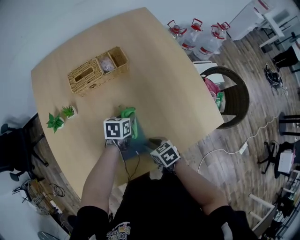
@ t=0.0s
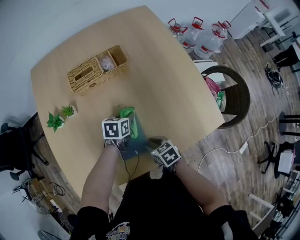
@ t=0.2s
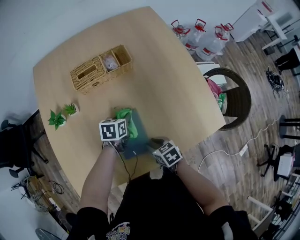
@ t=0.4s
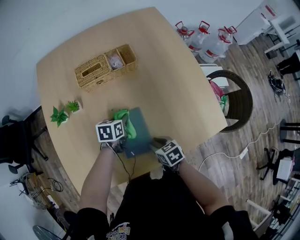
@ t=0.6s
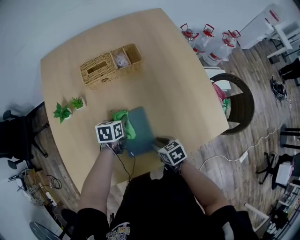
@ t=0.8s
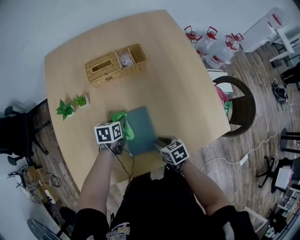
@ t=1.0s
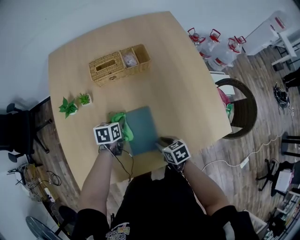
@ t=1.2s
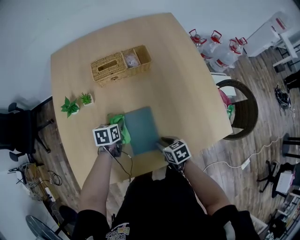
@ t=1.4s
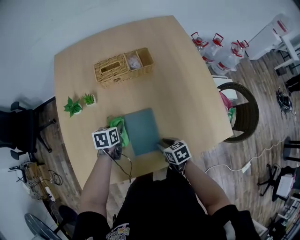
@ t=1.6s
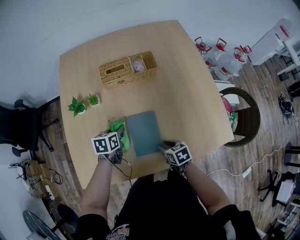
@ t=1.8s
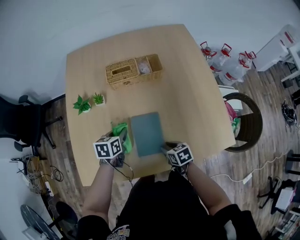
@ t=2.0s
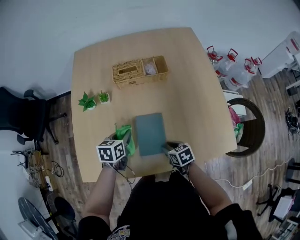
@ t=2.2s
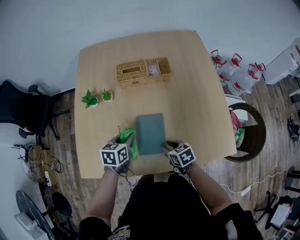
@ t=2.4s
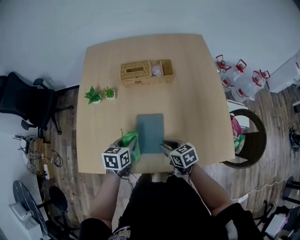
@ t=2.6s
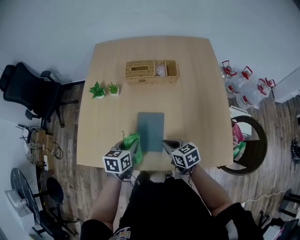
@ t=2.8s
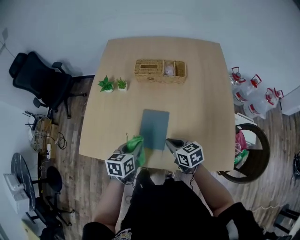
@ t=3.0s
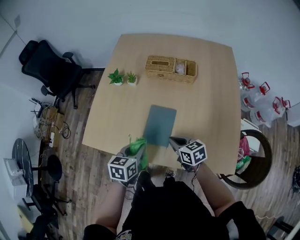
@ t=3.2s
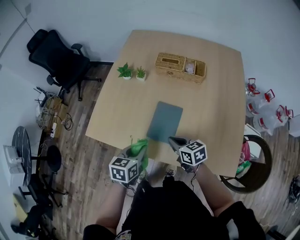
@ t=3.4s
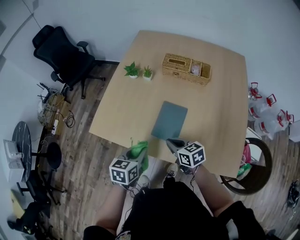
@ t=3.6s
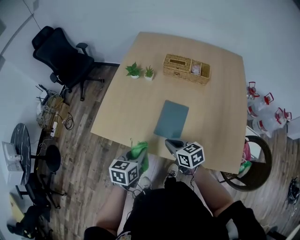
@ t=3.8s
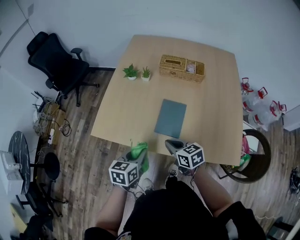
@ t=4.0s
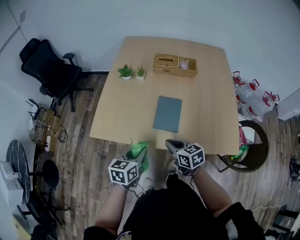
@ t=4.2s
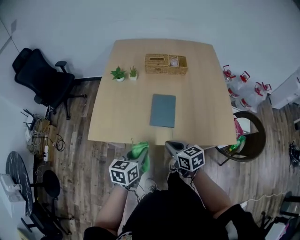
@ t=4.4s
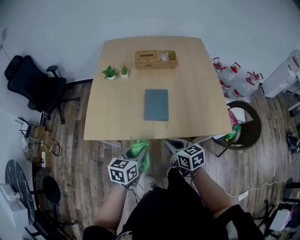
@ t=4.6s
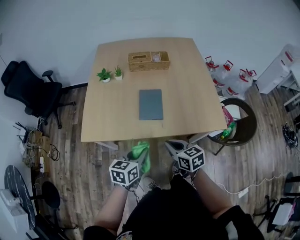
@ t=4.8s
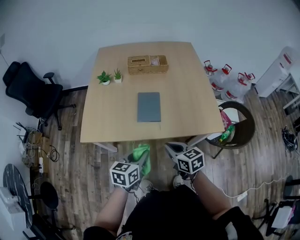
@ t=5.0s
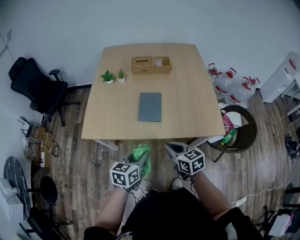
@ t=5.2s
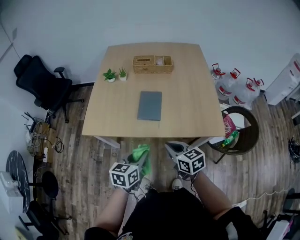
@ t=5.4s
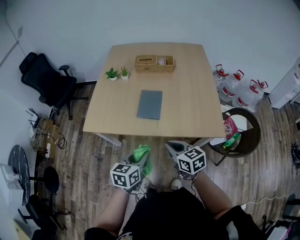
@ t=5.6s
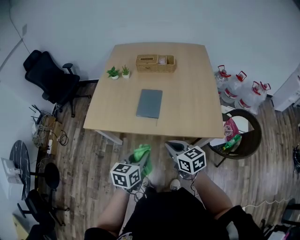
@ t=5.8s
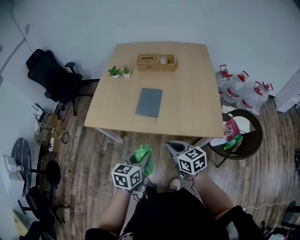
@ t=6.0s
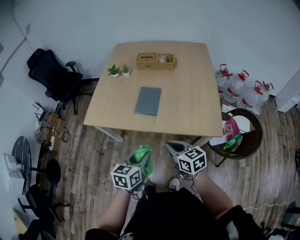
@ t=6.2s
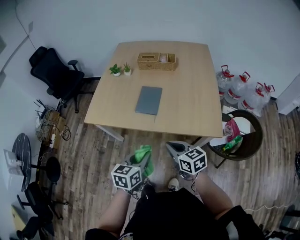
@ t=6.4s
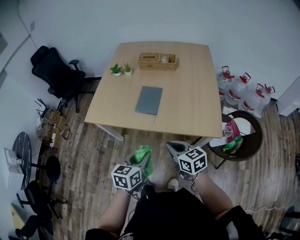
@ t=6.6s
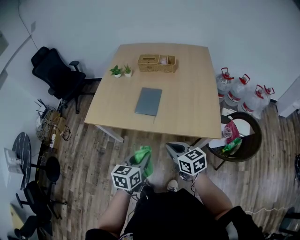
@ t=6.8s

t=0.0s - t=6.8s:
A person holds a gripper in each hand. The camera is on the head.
t=0.0s - t=1.4s: The left gripper is displaced to the left by approximately 15 cm.
t=1.4s - t=2.8s: The right gripper travels upward by roughly 10 cm, rotates approximately 30 degrees, and closes its fingers; the left gripper shifts roughly 20 cm backward and upward.
t=2.8s - t=4.0s: The right gripper moves to the left and backward, some 15 cm; the left gripper moves backward and to the left, some 20 cm.
t=4.0s - t=5.4s: Both grippers travel together backward and to the right, roughly 15 cm.
t=5.4s - t=6.8s: The two grippers go about 10 cm to the right and backward.

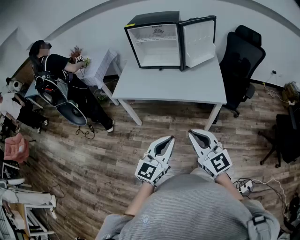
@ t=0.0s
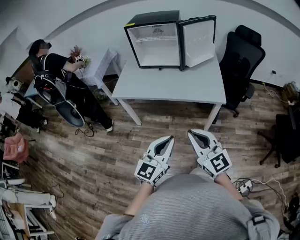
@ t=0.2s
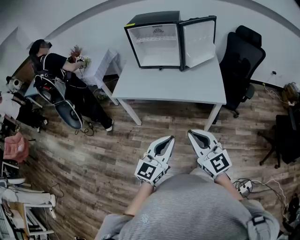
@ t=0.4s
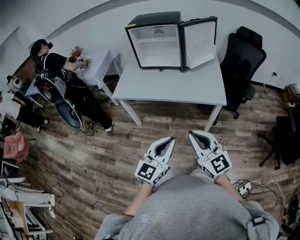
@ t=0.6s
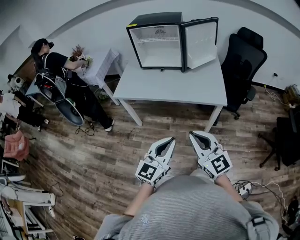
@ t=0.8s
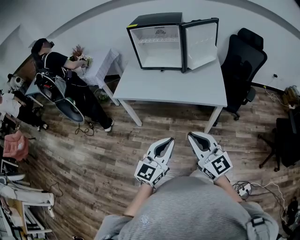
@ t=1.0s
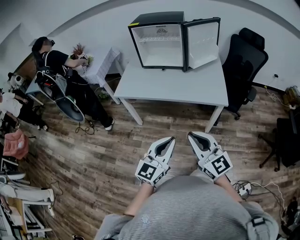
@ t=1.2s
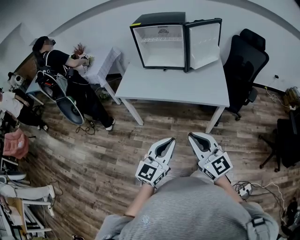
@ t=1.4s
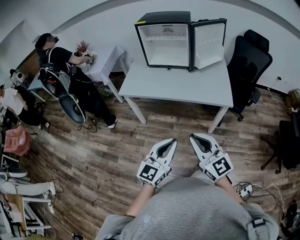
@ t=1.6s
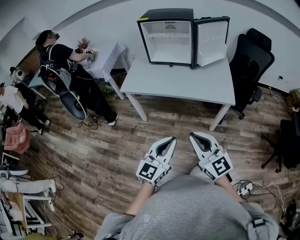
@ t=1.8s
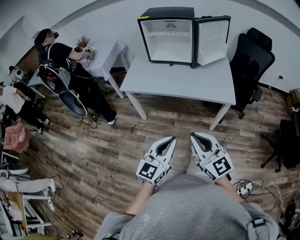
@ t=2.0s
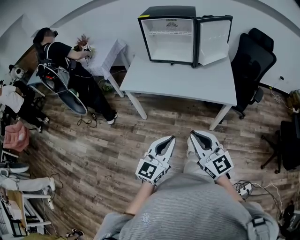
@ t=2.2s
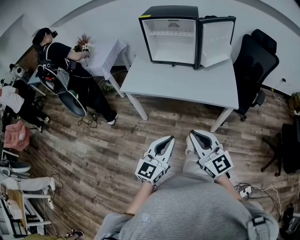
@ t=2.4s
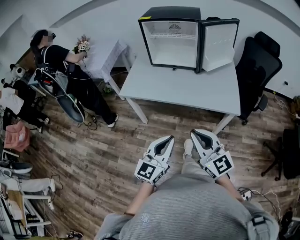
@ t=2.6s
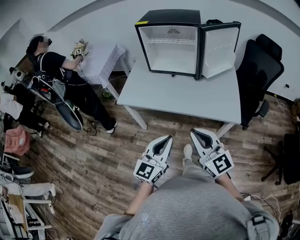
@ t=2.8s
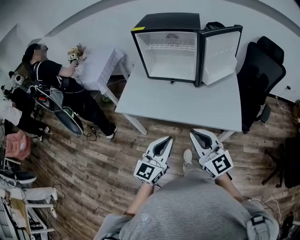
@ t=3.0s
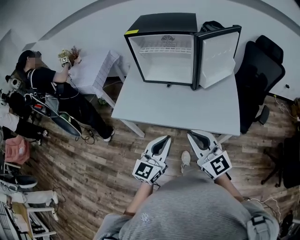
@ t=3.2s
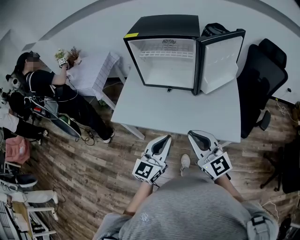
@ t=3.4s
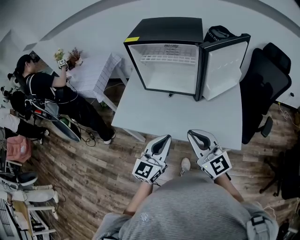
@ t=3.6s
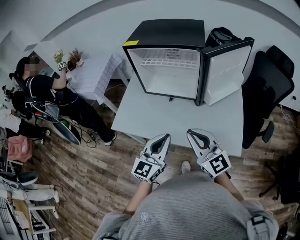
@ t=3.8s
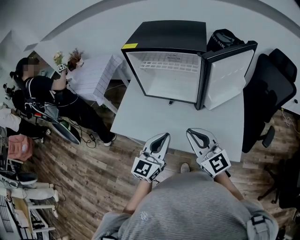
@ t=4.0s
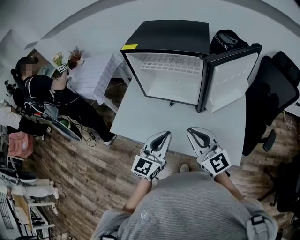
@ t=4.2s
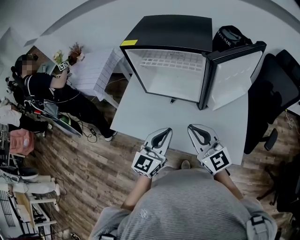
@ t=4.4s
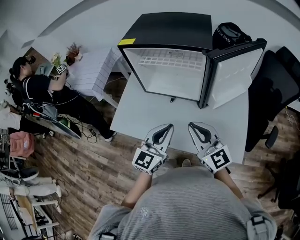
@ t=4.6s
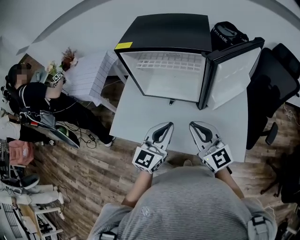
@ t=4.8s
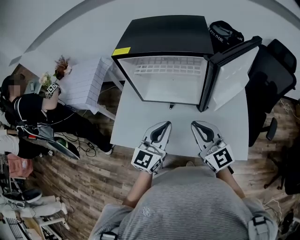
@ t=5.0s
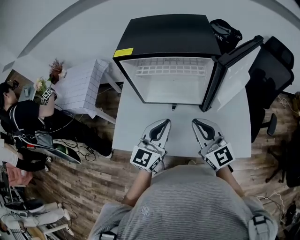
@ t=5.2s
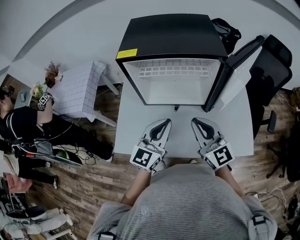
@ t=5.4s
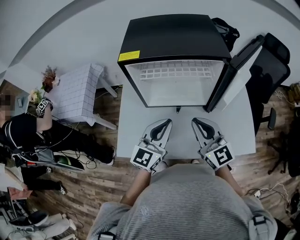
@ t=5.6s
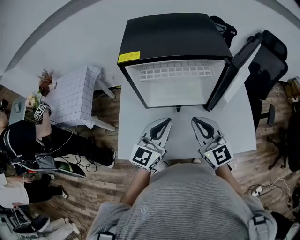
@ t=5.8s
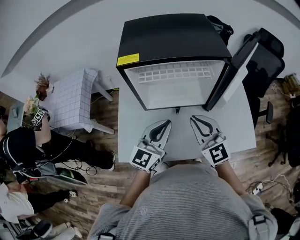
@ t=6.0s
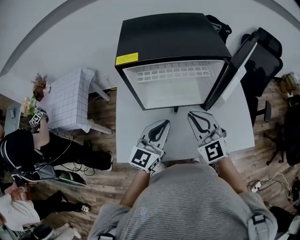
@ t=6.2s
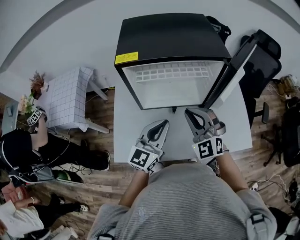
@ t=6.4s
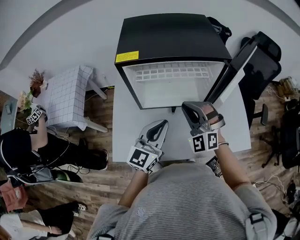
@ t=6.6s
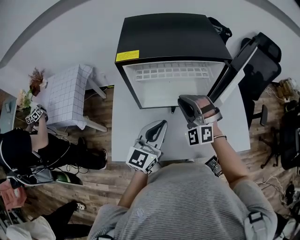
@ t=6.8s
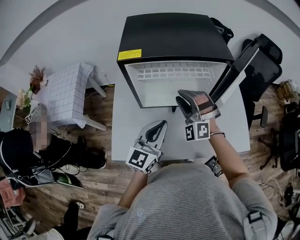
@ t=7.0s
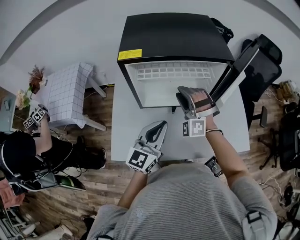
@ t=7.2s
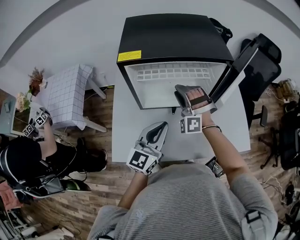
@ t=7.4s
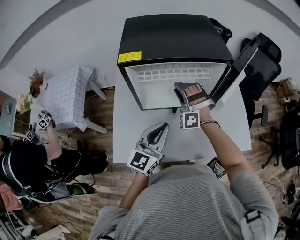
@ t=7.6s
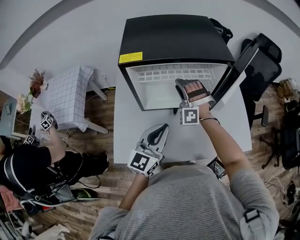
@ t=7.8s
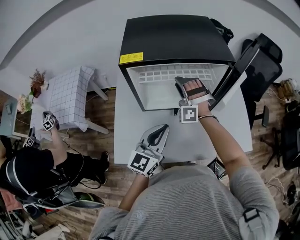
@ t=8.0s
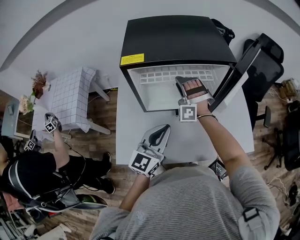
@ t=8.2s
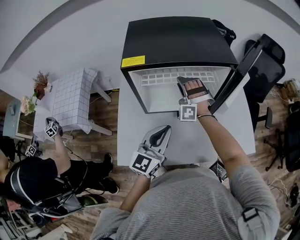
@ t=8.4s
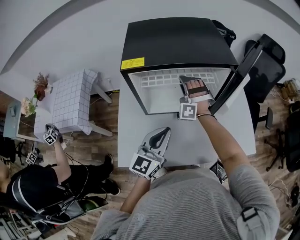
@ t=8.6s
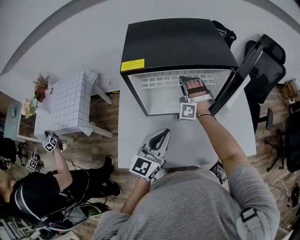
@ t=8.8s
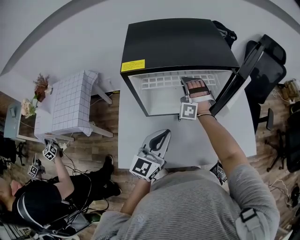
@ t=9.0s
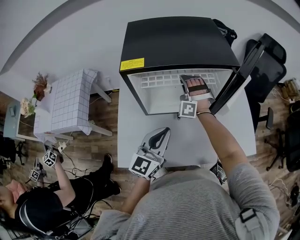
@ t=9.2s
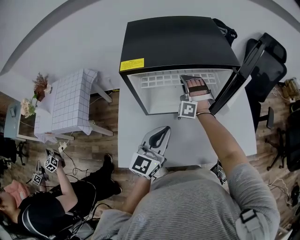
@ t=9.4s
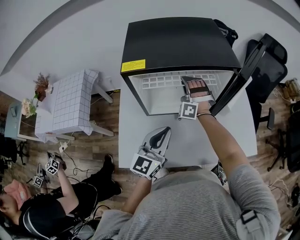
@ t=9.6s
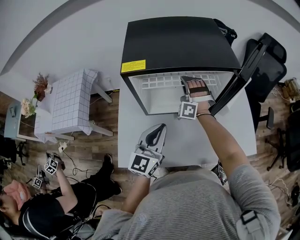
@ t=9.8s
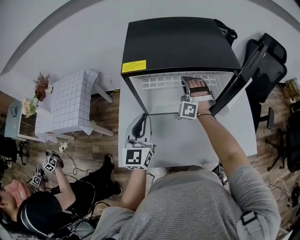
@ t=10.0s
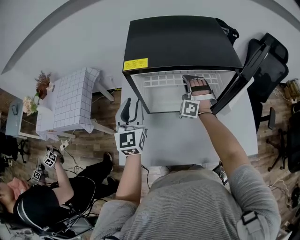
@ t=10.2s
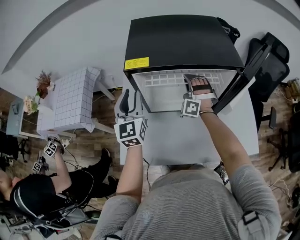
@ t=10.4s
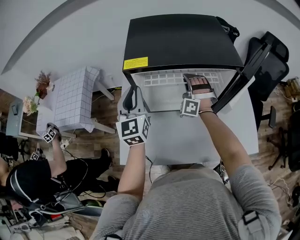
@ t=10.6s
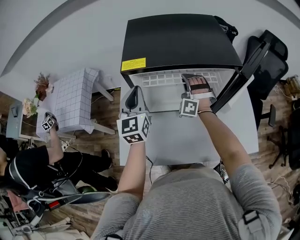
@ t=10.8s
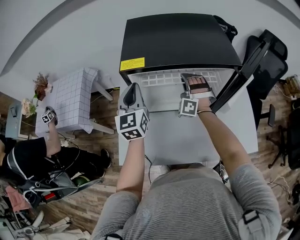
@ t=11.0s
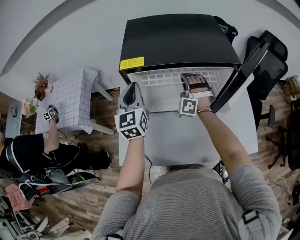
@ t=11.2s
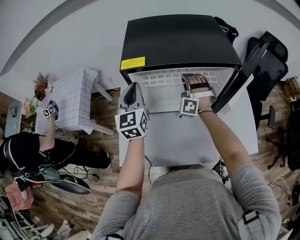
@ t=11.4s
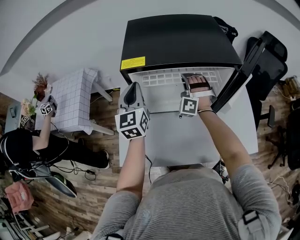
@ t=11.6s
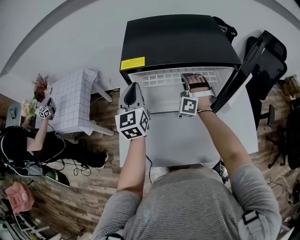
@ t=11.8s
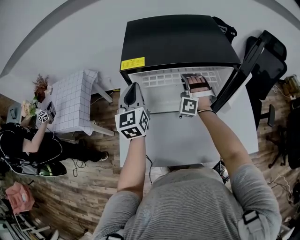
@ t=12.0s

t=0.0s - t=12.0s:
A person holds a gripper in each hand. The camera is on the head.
t=0.0s - t=1.6s: The grippers stay close to where they were, moving slightly.
t=1.6s - t=3.0s: Both grippers move forward, roughly 20 cm.
t=3.0s - t=4.4s: Both grippers move forward, some 25 cm.
t=4.4s - t=6.0s: The right gripper shifts roughly 15 cm to the left and forward, and swivels some 30 degrees. Meanwhile the left gripper moves forward and to the left, roughly 20 cm, and turns by roughly 20 degrees.
t=6.0s - t=7.6s: The right gripper travels forward, downward and to the left by roughly 20 cm, rotates around the line of its fingers by approximately 70 degrees, counterclockwise from behind, and opens its fingers.
t=7.6s - t=9.0s: The right gripper shifts some 10 cm forward, and closes up.
t=9.0s - t=10.4s: The left gripper shifts about 20 cm to the left and forward, turns by some 30 degrees, and opens.
t=10.4s - t=12.0s: The left gripper closes up.

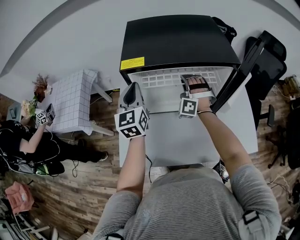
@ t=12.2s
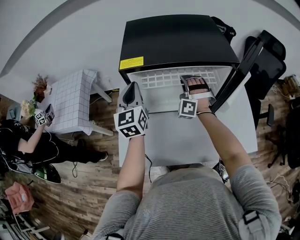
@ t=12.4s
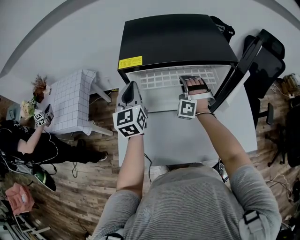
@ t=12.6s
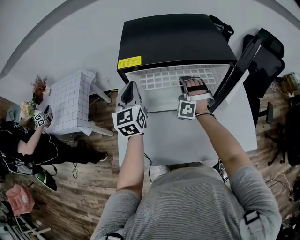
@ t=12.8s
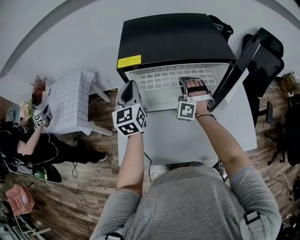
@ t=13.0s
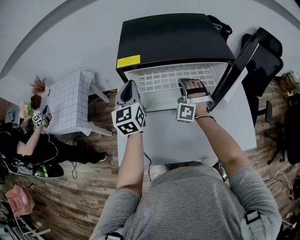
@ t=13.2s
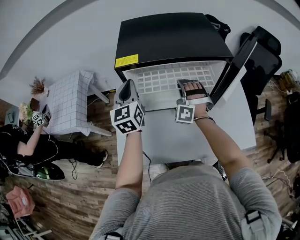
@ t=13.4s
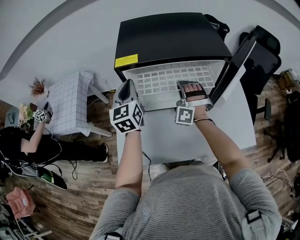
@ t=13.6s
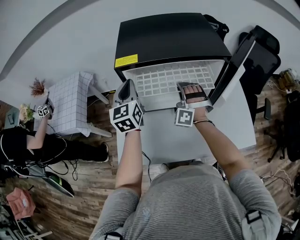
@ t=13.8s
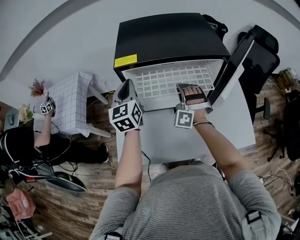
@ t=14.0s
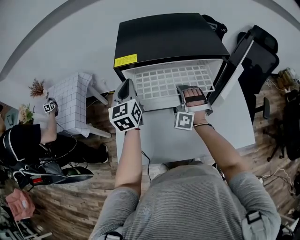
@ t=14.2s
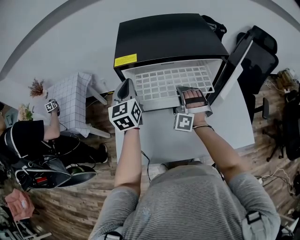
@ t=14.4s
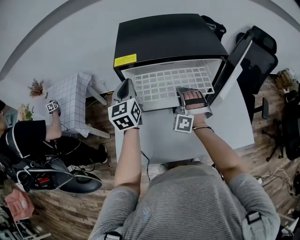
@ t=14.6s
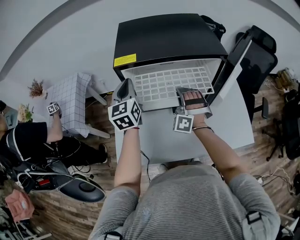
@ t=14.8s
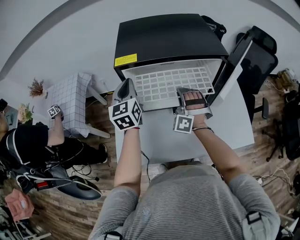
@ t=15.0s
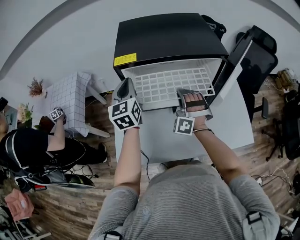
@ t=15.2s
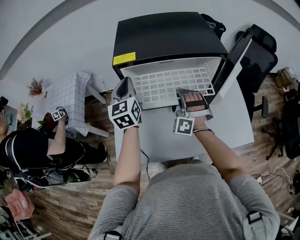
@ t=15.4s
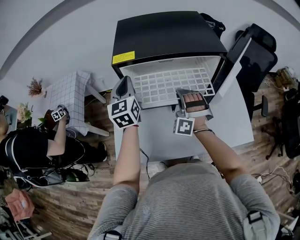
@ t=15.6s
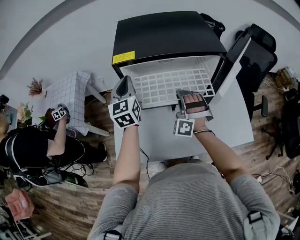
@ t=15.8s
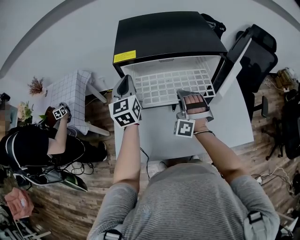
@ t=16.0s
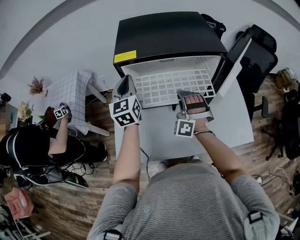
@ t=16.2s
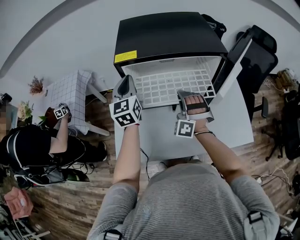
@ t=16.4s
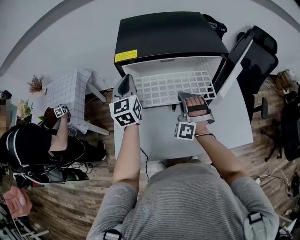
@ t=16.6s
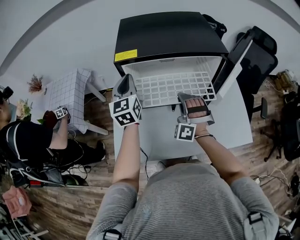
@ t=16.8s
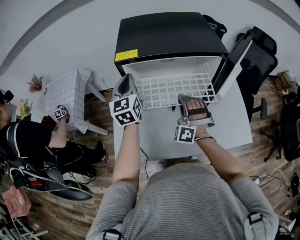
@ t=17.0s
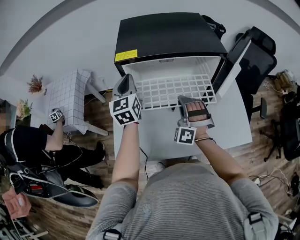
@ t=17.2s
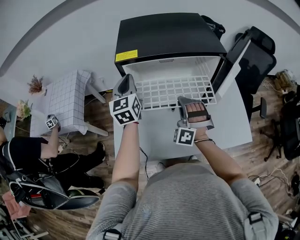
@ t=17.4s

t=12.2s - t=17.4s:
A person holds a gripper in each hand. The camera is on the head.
t=12.2s - t=14.0s: The right gripper travels backward by about 5 cm.
t=14.0s - t=15.6s: The grippers make only small movements.
t=15.6s - t=17.4s: There are only small adjustments of the grippers.
